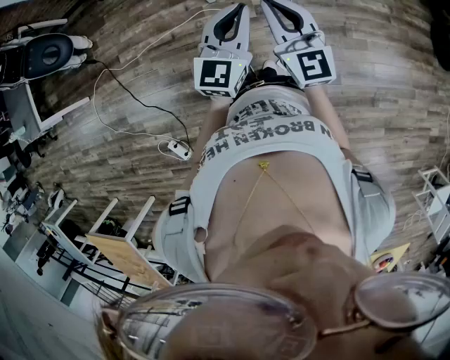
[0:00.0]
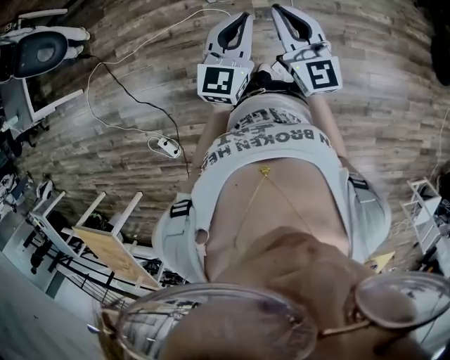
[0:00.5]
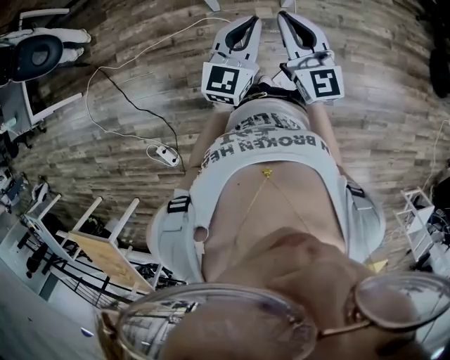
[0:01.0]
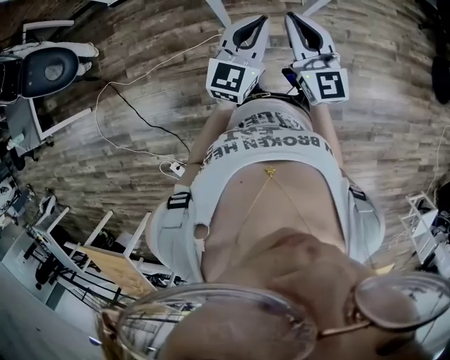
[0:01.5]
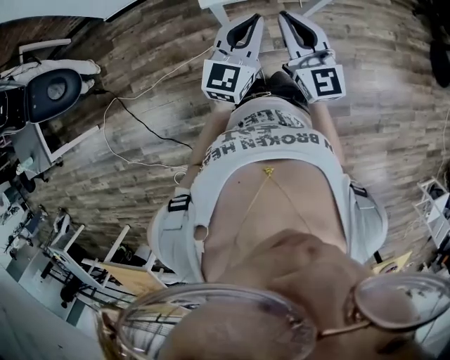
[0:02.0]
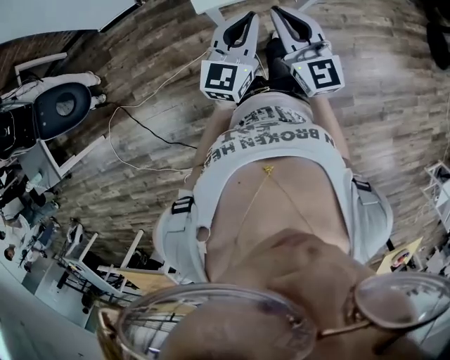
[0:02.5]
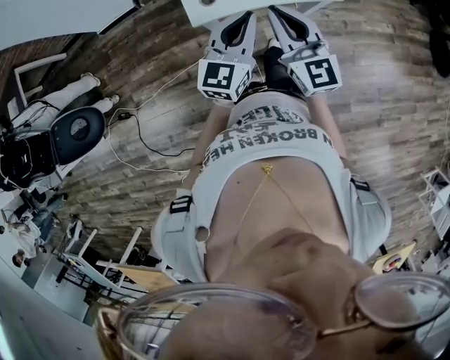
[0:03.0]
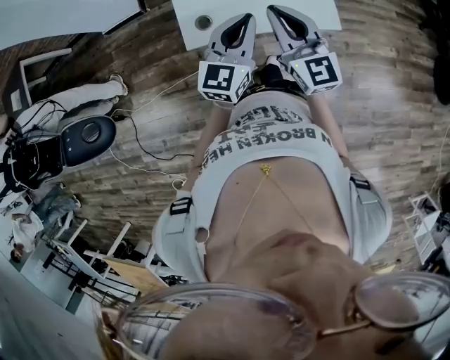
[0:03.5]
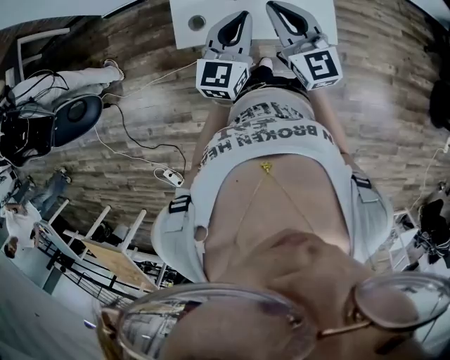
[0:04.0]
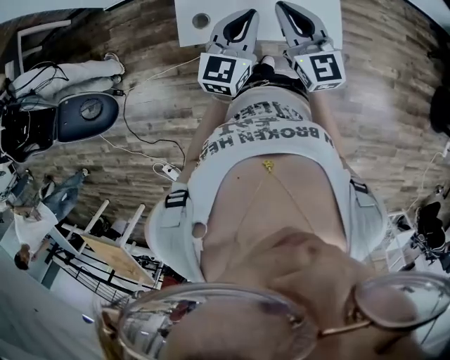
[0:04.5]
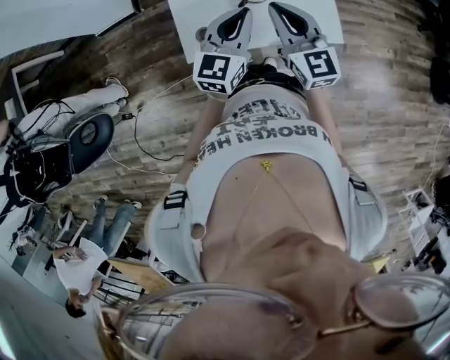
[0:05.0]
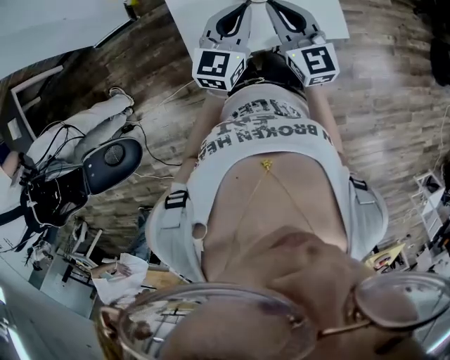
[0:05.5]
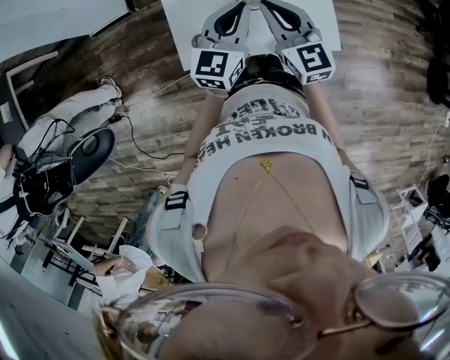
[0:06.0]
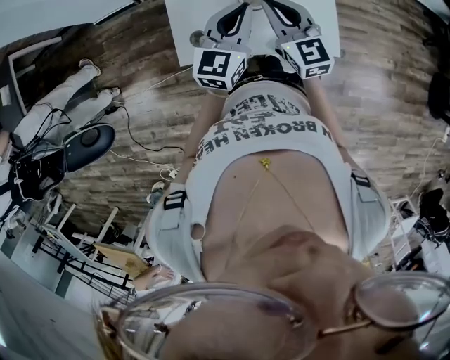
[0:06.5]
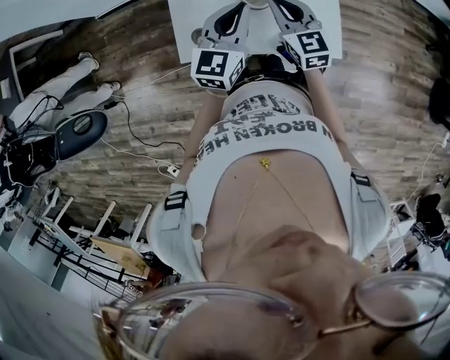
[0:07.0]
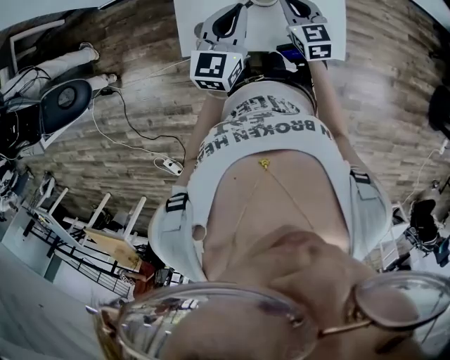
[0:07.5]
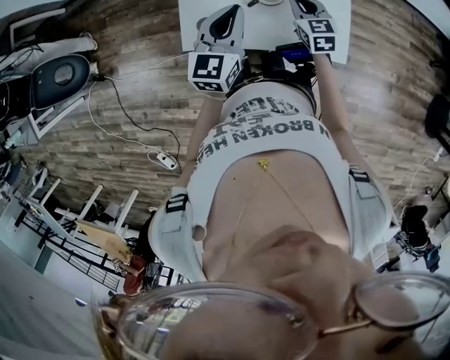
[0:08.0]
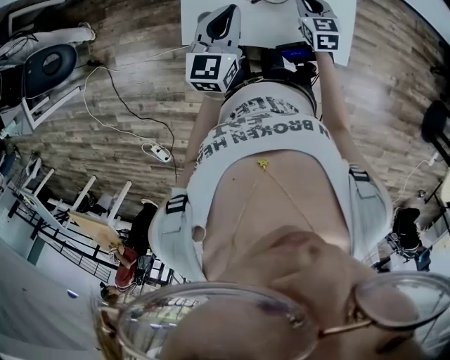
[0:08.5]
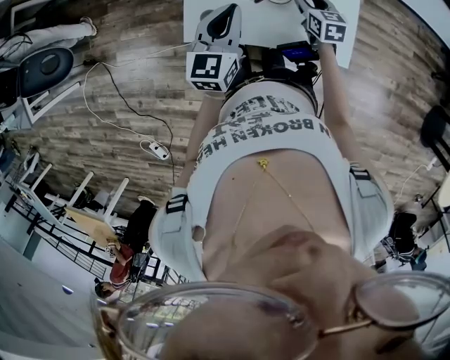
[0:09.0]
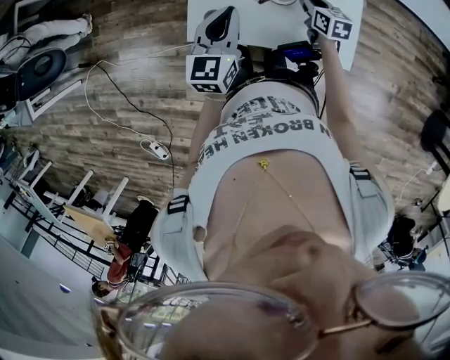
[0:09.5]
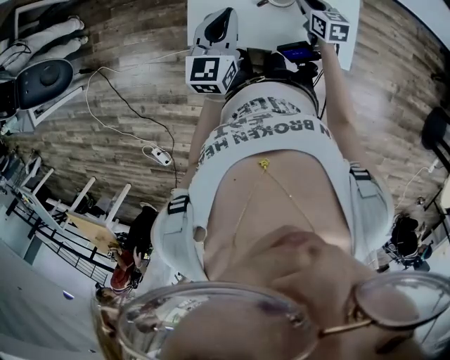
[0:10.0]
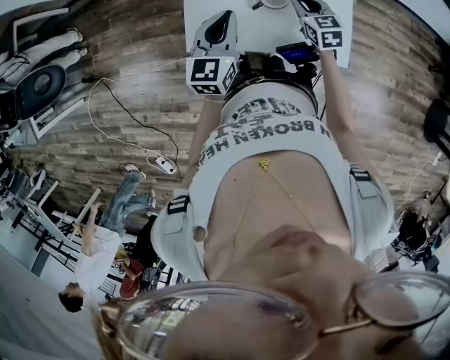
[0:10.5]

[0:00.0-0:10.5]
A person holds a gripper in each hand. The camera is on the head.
0:00.0 to 0:02.0: The two grippers go about 30 cm forward and to the left.
0:02.0 to 0:04.0: Both grippers move forward and to the right, approximately 30 cm.
0:04.0 to 0:06.5: The left gripper shifts some 15 cm forward; the right gripper shifts roughly 15 cm forward and downward.
0:06.5 to 0:08.5: The right gripper shifts some 15 cm downward, and changes its angle by roughly 20 degrees; the left gripper goes approximately 5 cm to the left.
0:08.5 to 0:10.5: The right gripper opens, then closes once more.

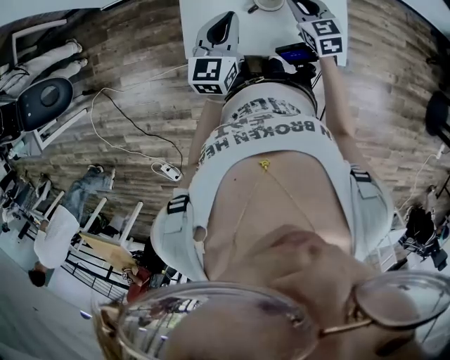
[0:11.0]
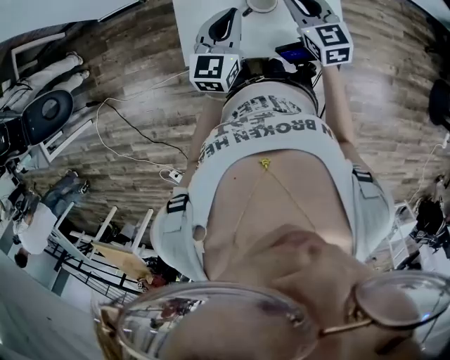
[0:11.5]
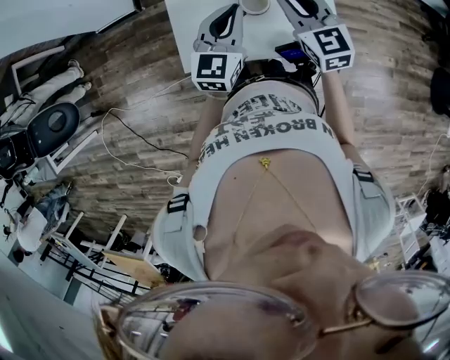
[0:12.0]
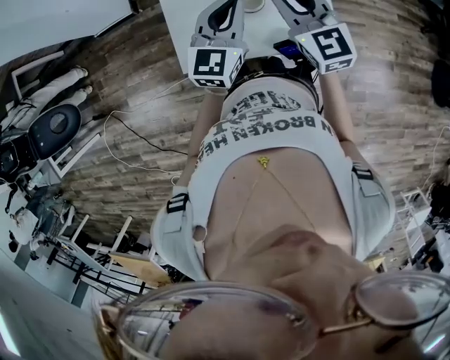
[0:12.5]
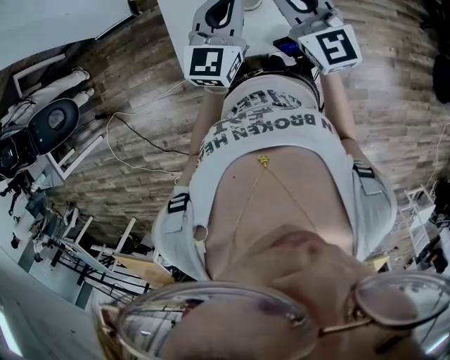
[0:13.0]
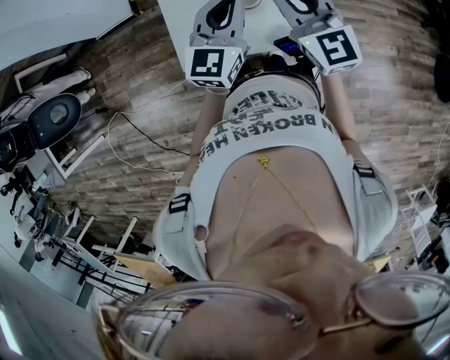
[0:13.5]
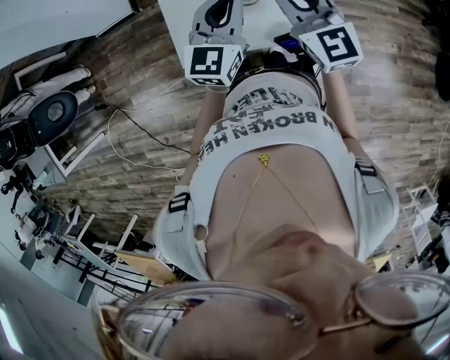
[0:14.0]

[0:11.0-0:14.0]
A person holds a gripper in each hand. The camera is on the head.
0:11.0 to 0:12.5: The left gripper travels to the right and upward by approximately 10 cm. Meanwhile the right gripper goes some 15 cm upward, and changes its angle by roughly 20 degrees.
0:12.5 to 0:14.0: The right gripper changes place by roughly 5 cm.

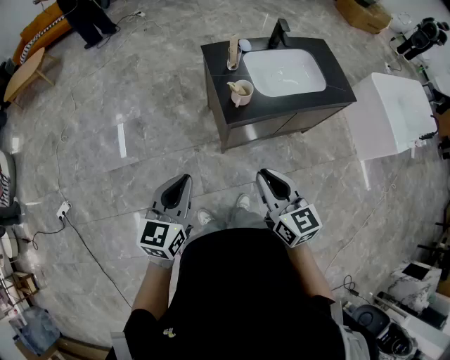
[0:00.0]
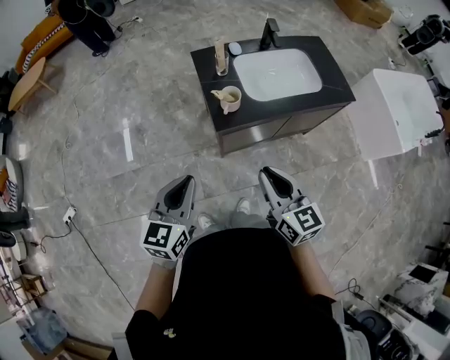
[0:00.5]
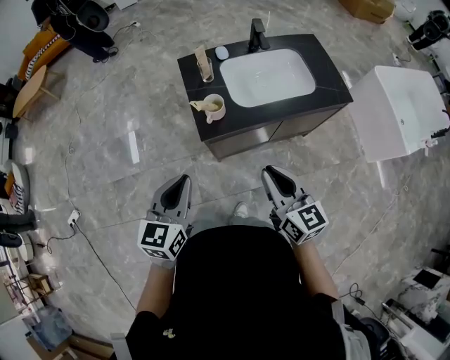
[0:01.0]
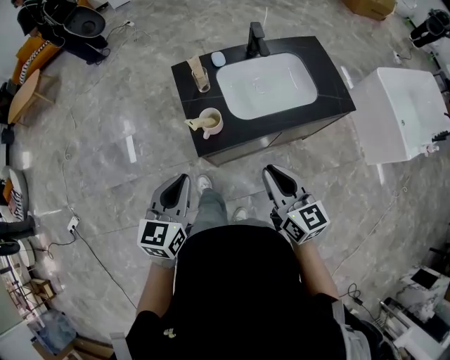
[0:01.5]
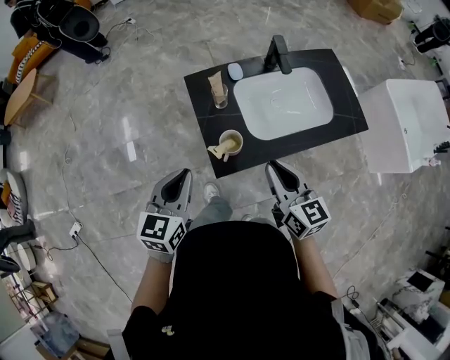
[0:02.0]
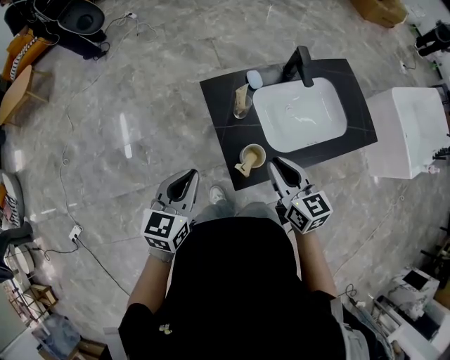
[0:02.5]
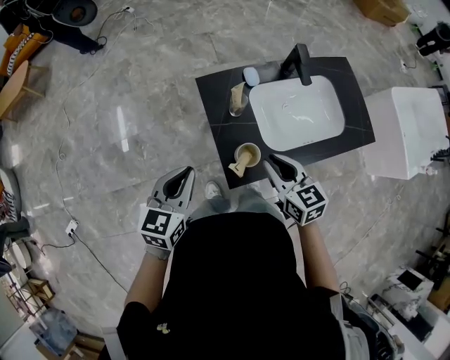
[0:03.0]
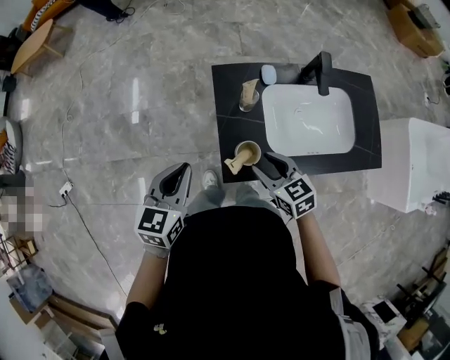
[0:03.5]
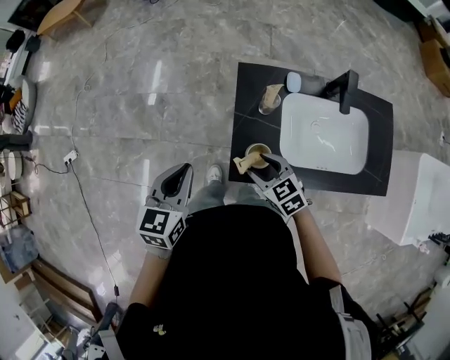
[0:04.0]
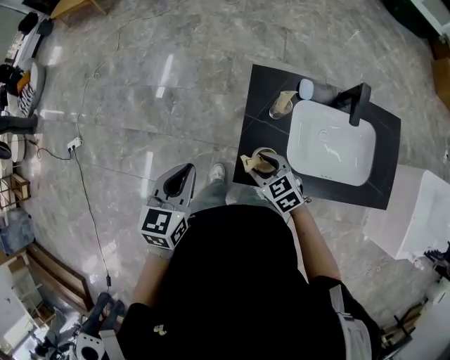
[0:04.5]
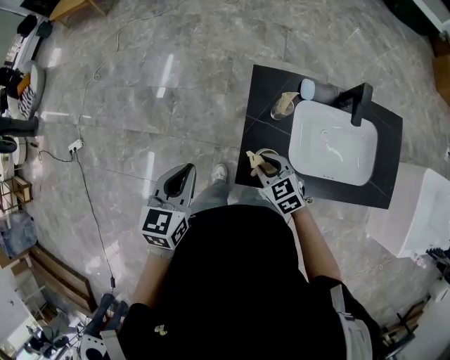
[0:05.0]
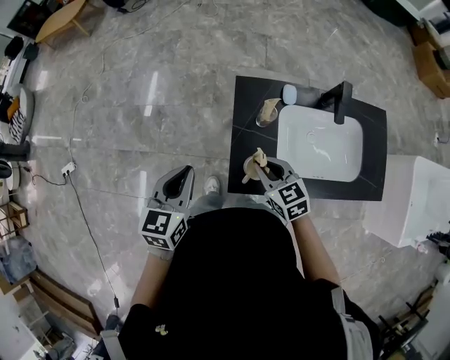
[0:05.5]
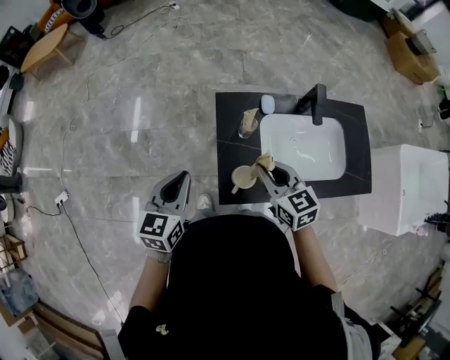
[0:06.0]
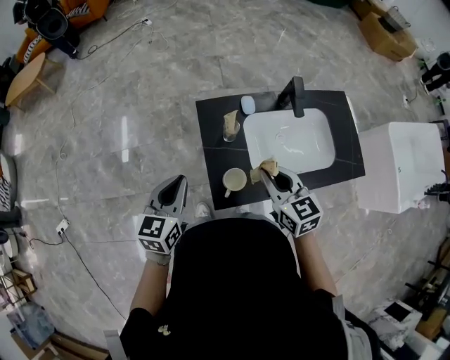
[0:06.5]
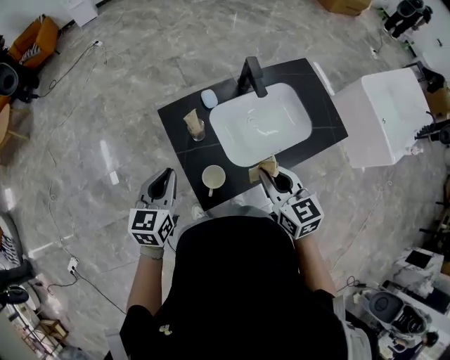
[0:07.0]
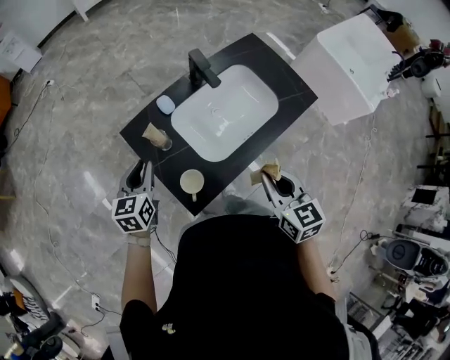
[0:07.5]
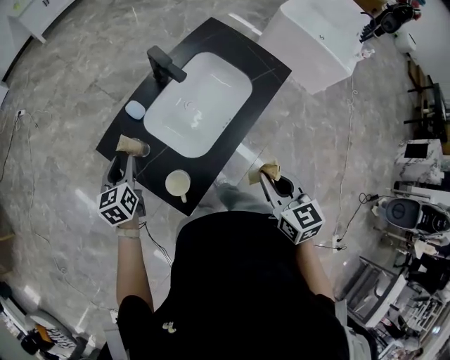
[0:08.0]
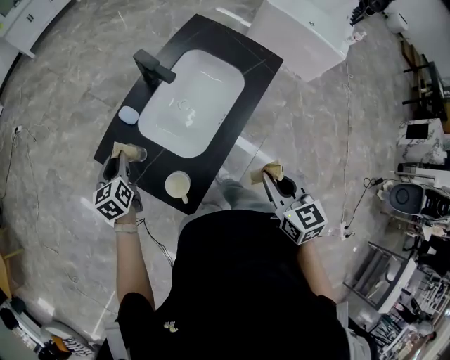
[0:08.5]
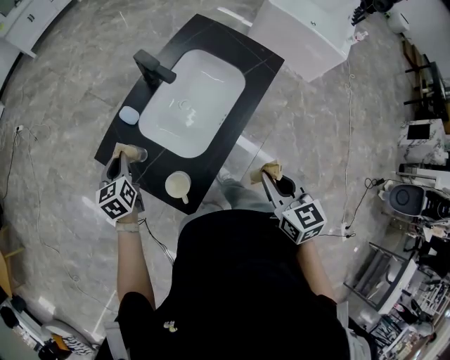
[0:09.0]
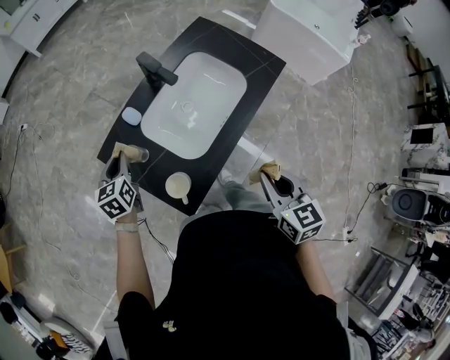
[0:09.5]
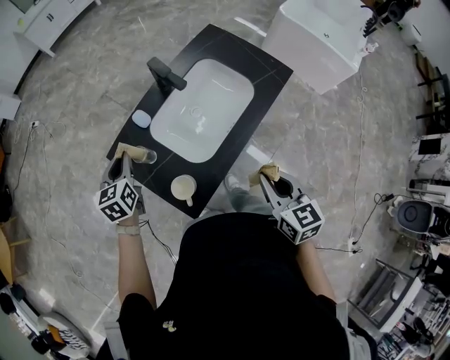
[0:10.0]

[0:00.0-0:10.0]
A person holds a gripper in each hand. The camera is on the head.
0:00.0 to 0:02.0: The left gripper moves forward, approximately 25 cm, while the right gripper is displaced forward and to the right by some 30 cm.
0:02.0 to 0:04.0: The left gripper shifts by roughly 5 cm, and swivels about 20 degrees, while the right gripper travels downward by about 15 cm, swivels roughly 60 degrees, and opens up.
0:04.0 to 0:06.0: The left gripper ends up some 5 cm from where it was; the right gripper is displaced upward and to the right by about 15 cm, rotates some 30 degrees, and closes up.
0:06.0 to 0:08.0: The right gripper changes place by some 25 cm, and rotates about 60 degrees. The left gripper changes place by roughly 25 cm, swivels some 30 degrees, and opens its fingers.
0:08.0 to 0:10.0: The left gripper shifts by about 5 cm, and closes up.

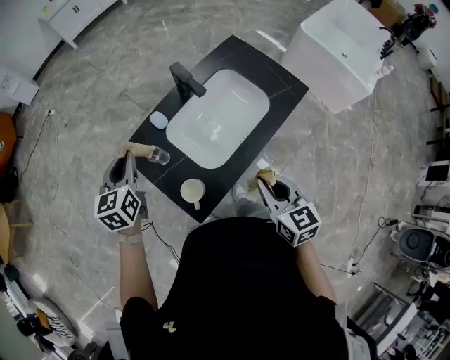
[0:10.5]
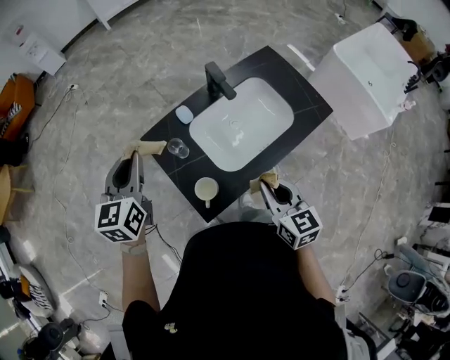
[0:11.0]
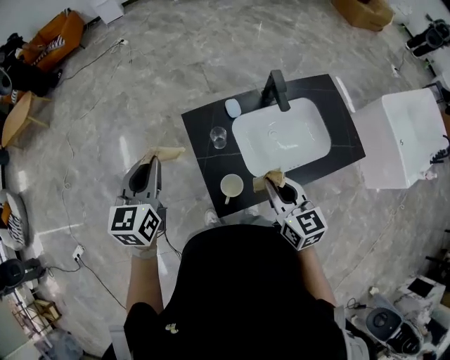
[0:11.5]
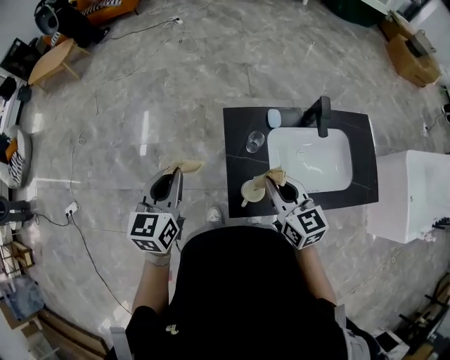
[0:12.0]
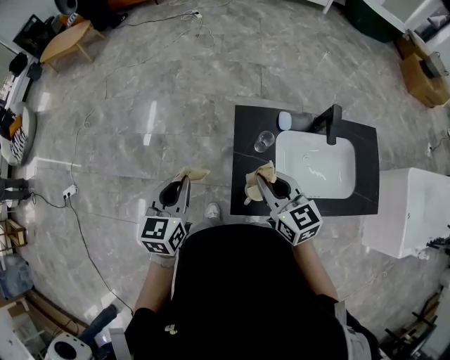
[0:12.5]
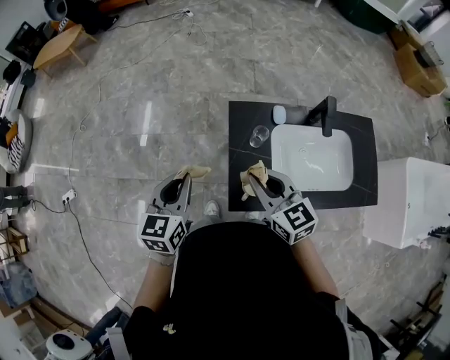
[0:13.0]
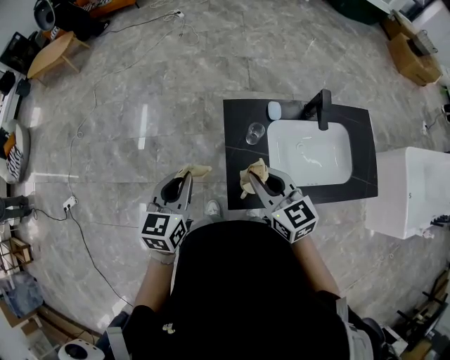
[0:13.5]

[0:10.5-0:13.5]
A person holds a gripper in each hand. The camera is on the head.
0:10.5 to 0:12.0: The right gripper moves some 25 cm, and swivels approximately 40 degrees. The left gripper ends up roughly 25 cm from where it was, and changes its angle by roughly 30 degrees.
0:12.0 to 0:13.5: The right gripper goes approximately 5 cm to the left. The left gripper changes place by some 5 cm.
